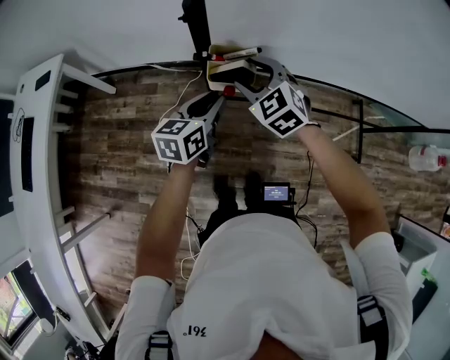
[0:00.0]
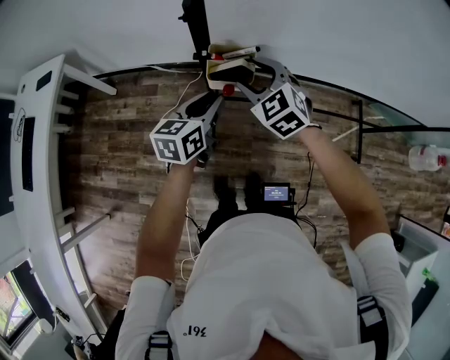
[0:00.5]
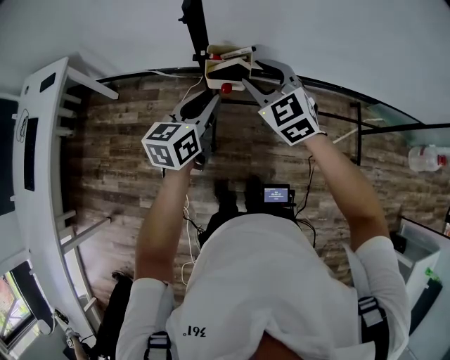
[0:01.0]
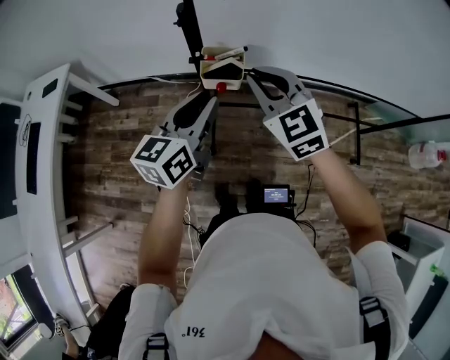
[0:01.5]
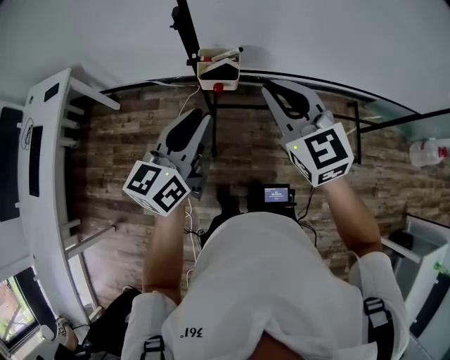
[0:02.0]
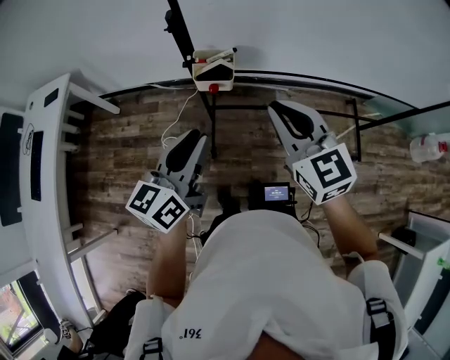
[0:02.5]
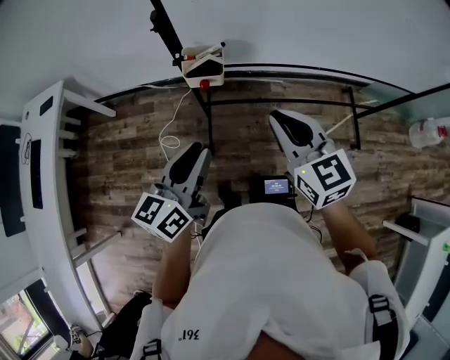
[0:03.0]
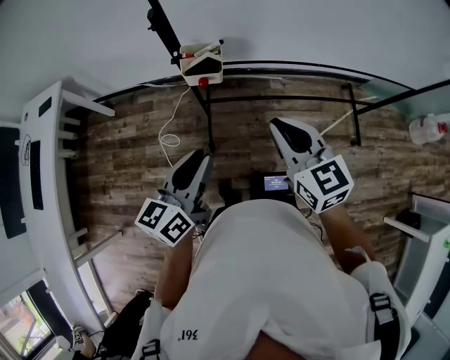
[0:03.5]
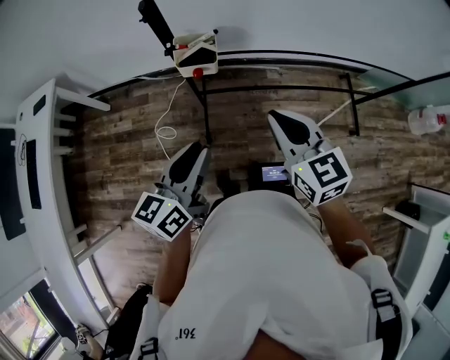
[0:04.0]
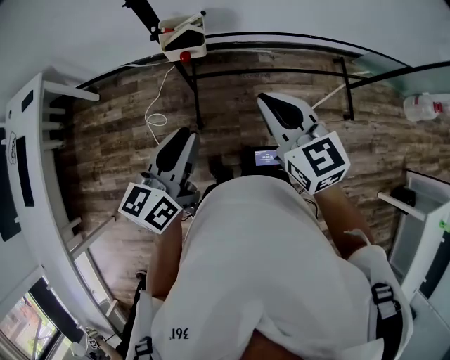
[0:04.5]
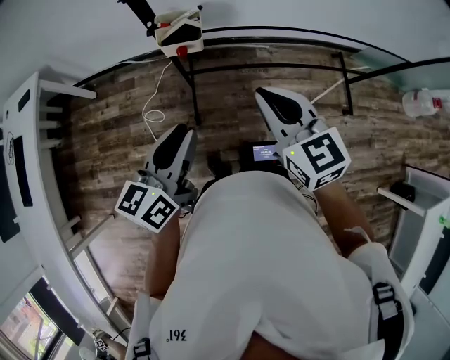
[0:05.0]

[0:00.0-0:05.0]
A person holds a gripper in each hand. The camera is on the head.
0:00.0 to 0:02.5: The right gripper moves backward, upward and to the right, approximately 25 cm, changes its angle by some 30 degrees, and closes its fingers, while the left gripper is displaced backward and upward by about 20 cm.
0:02.5 to 0:05.0: The left gripper moves backward, about 5 cm; the right gripper is displaced downward and backward by about 5 cm.

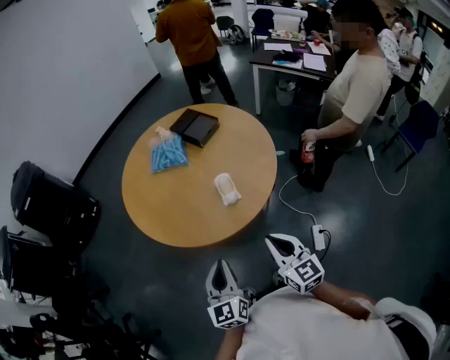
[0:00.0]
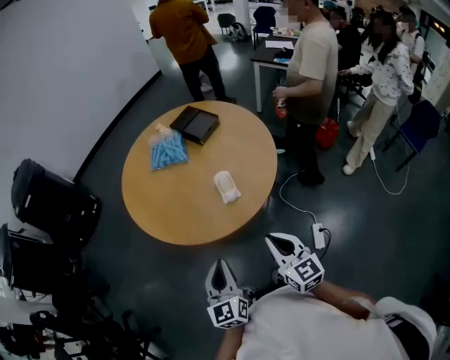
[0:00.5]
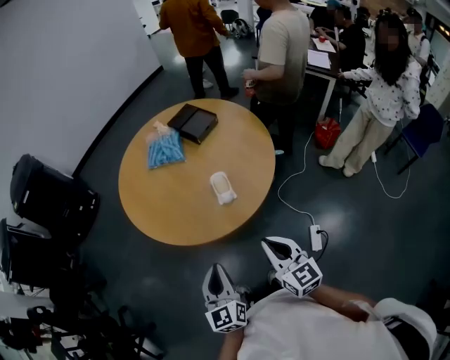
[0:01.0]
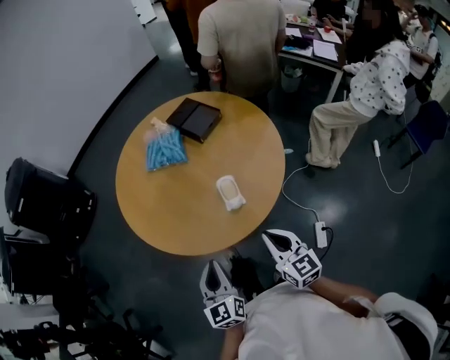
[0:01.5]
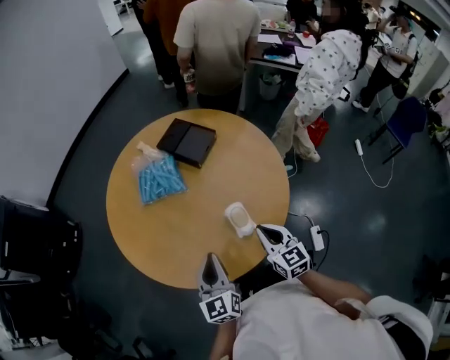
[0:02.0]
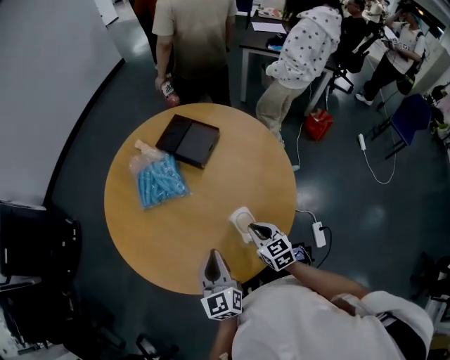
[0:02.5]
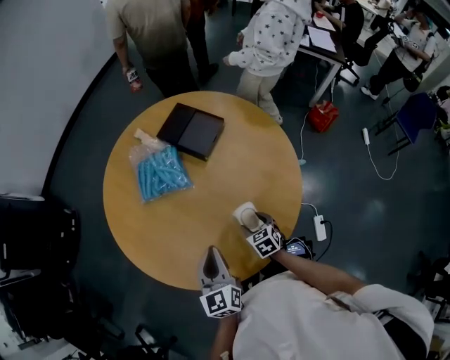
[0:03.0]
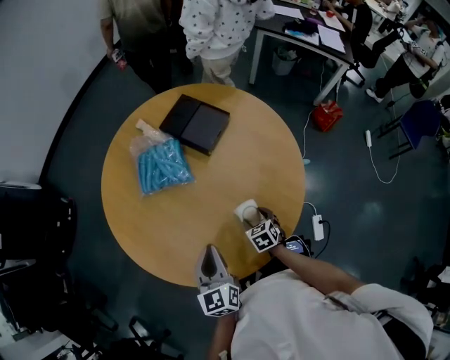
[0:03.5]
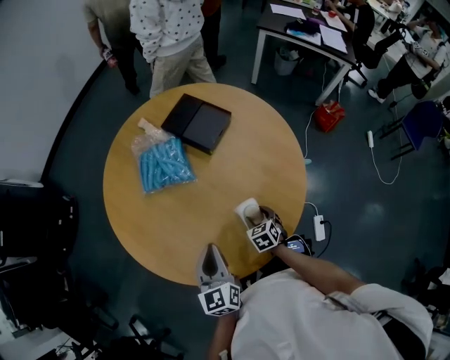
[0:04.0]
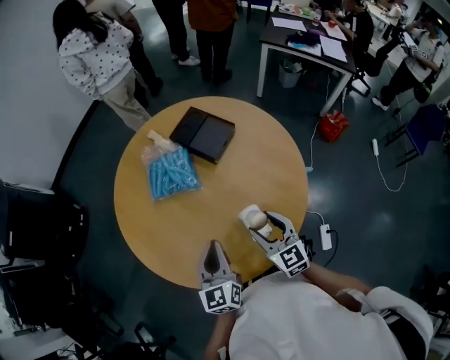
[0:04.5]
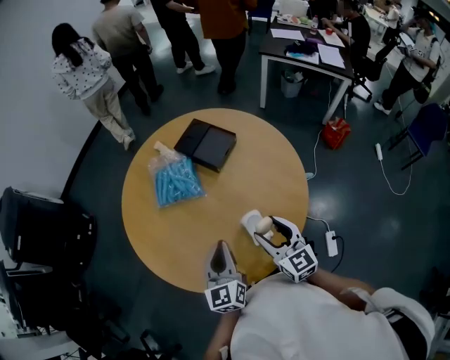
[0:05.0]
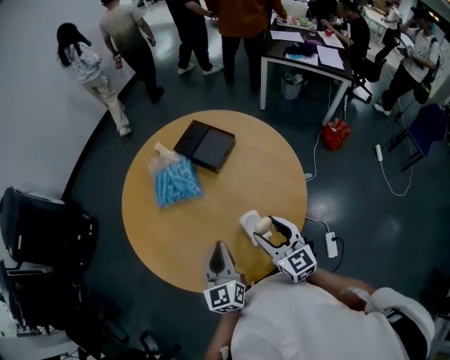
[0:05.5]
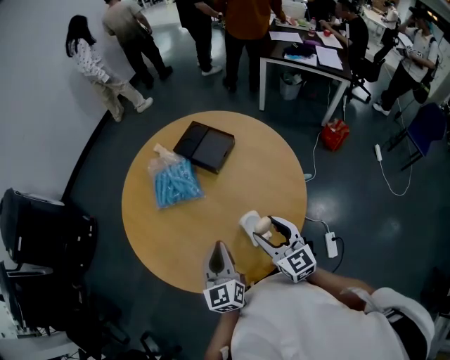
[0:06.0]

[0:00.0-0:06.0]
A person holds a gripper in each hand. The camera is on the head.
0:00.0 to 0:02.0: Both grippers move forward, some 25 cm.
0:02.0 to 0:04.0: The right gripper shifts some 25 cm downward and forward, angles its fingers downward, by roughly 40 degrees, and opens its fingers. The left gripper moves forward, roughly 10 cm.
0:04.0 to 0:06.0: The right gripper travels upward by approximately 25 cm, and points its fingers about 40 degrees further upward. Meanwhile the left gripper travels upward by about 5 cm.

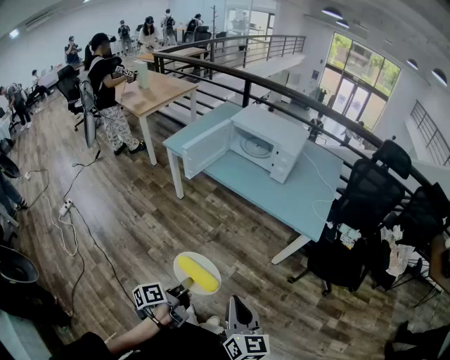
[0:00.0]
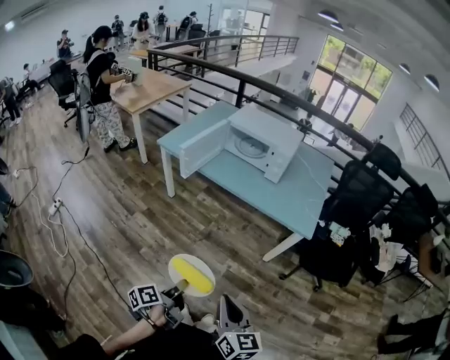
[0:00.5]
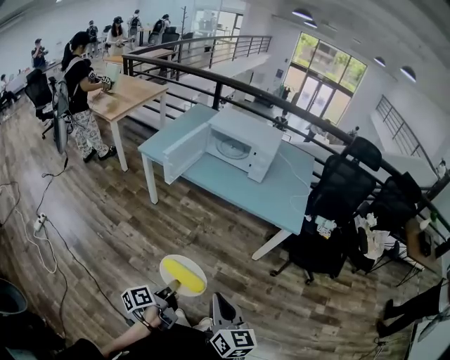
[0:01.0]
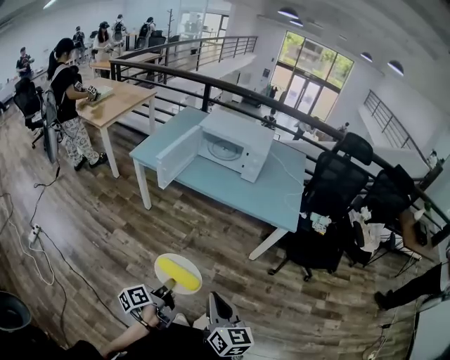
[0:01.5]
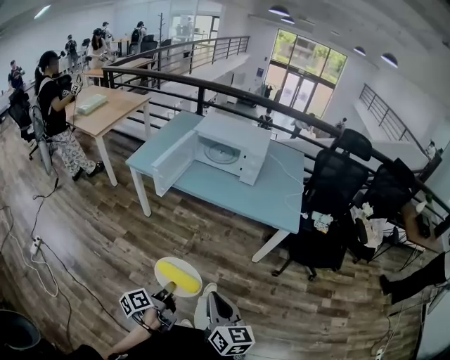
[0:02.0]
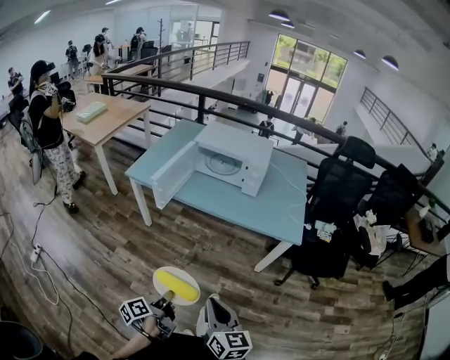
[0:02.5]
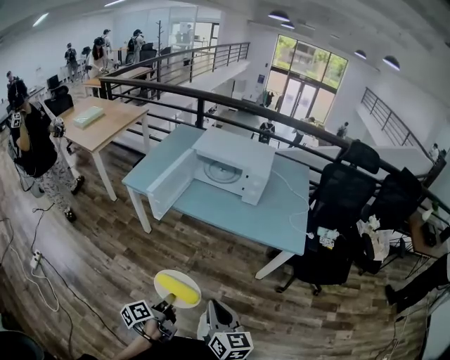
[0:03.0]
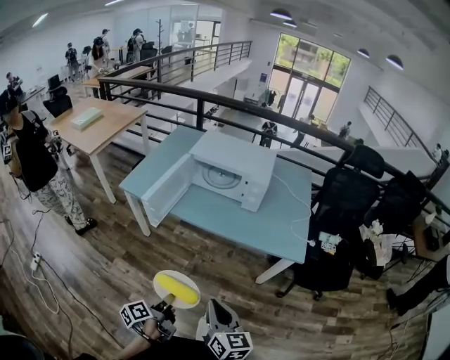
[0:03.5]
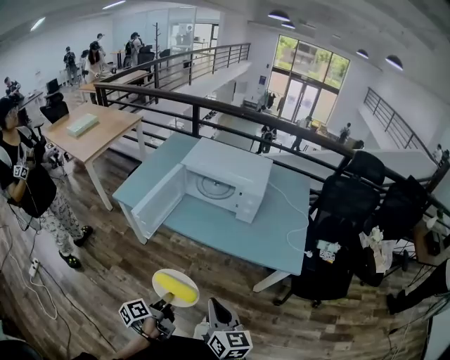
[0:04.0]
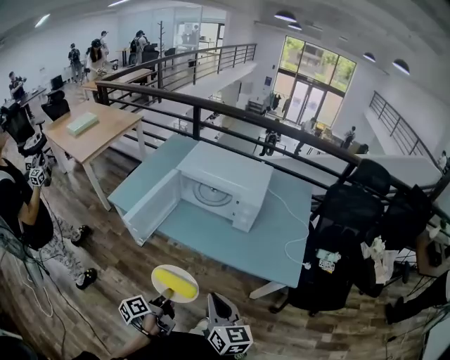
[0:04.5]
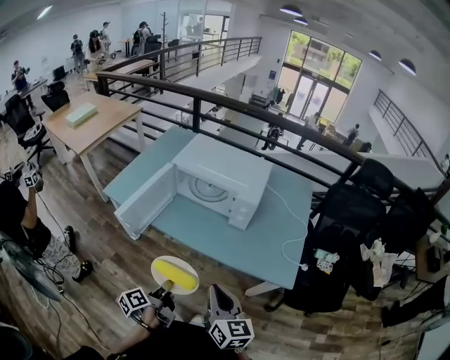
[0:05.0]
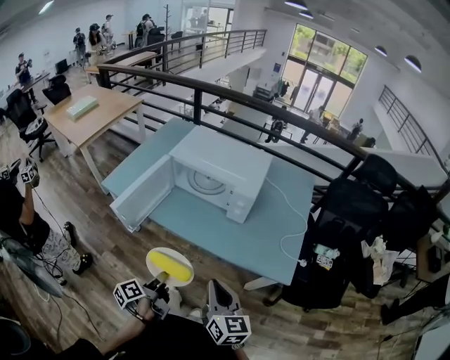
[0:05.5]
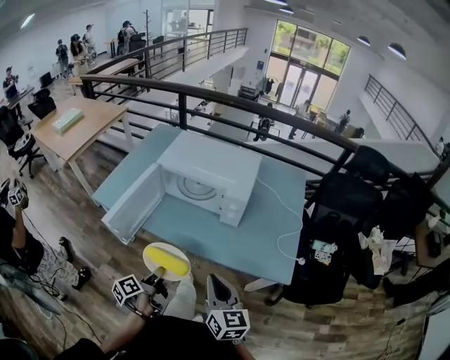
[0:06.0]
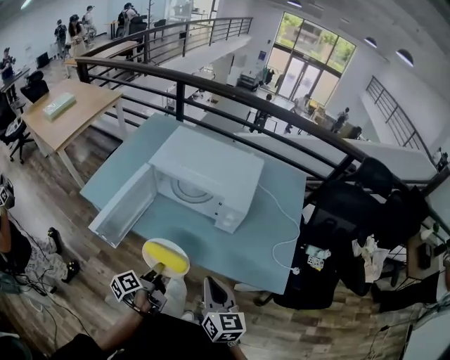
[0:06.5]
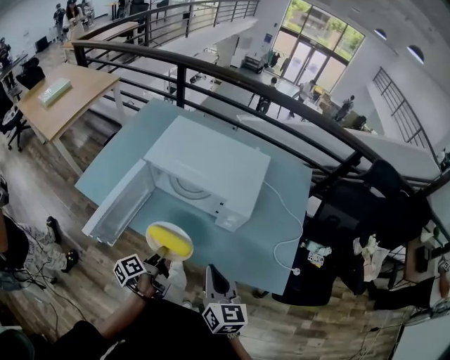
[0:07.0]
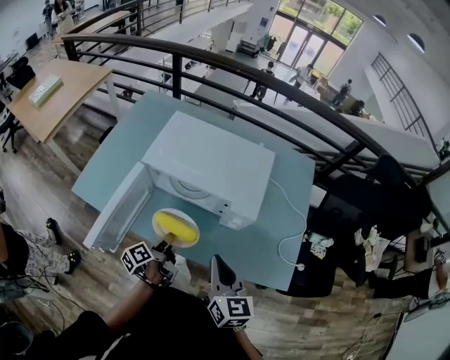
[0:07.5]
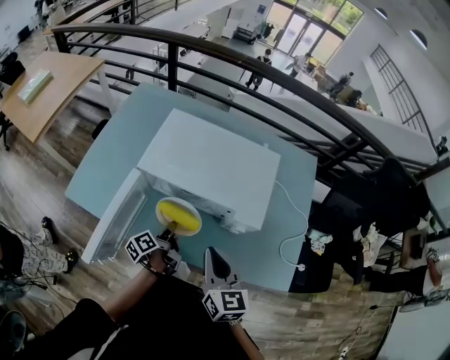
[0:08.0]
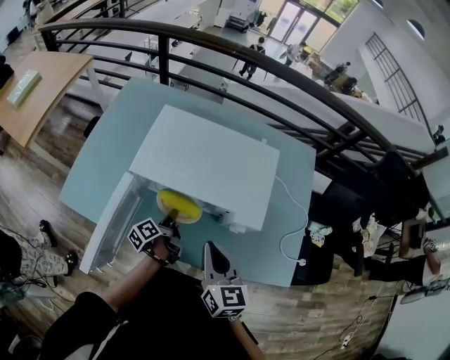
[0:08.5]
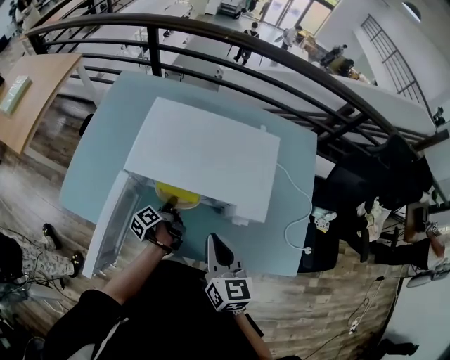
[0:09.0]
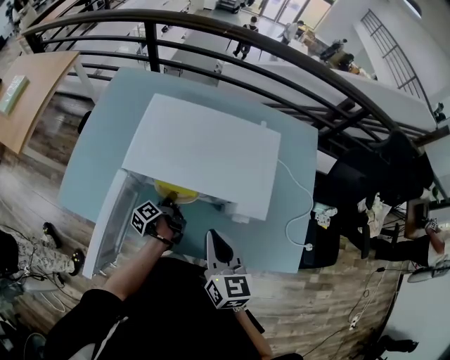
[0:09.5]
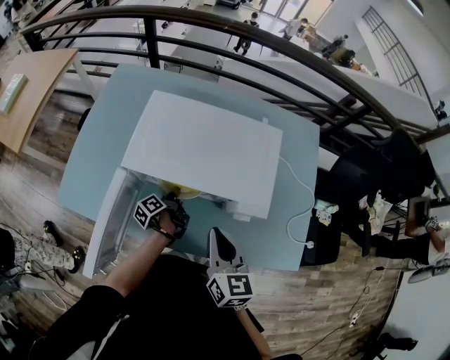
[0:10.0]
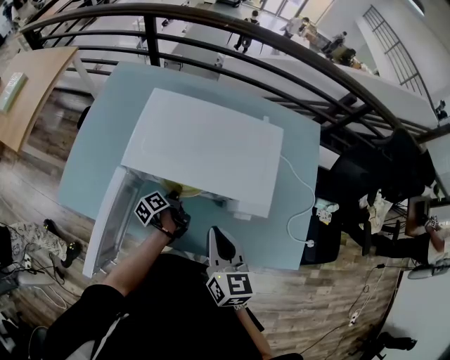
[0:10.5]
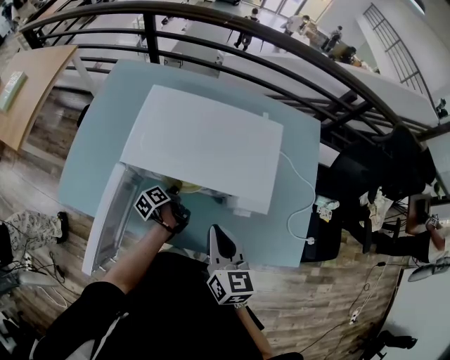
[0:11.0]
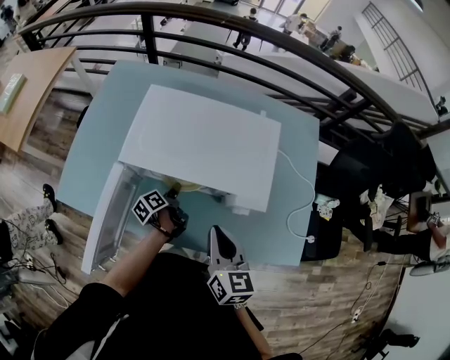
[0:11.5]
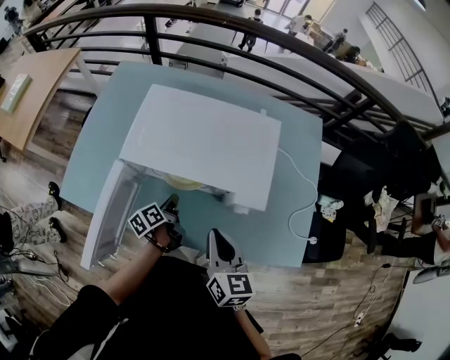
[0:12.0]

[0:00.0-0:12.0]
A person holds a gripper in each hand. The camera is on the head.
0:00.0 to 0:02.0: The right gripper ends up roughly 10 cm from where it was.
0:02.0 to 0:04.0: The right gripper ends up about 20 cm from where it was.
0:04.0 to 0:06.0: The right gripper ends up some 20 cm from where it was.
0:06.0 to 0:08.0: The right gripper ends up some 25 cm from where it was.
0:08.0 to 0:10.0: The right gripper moves roughly 5 cm.

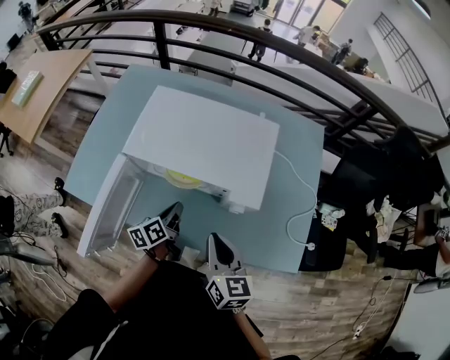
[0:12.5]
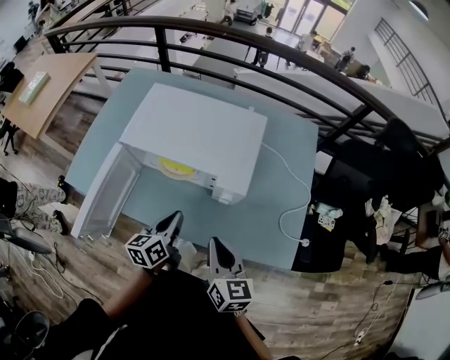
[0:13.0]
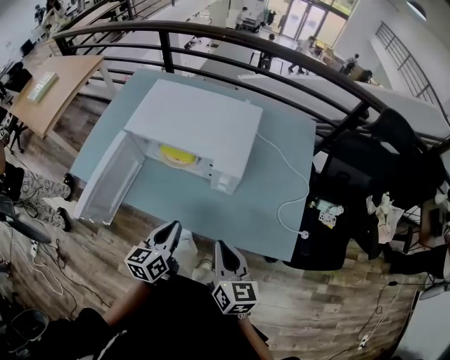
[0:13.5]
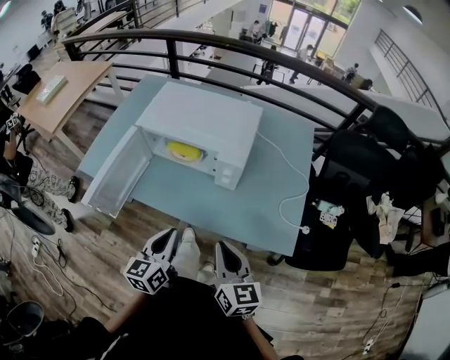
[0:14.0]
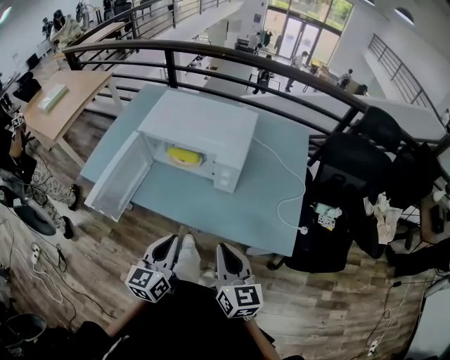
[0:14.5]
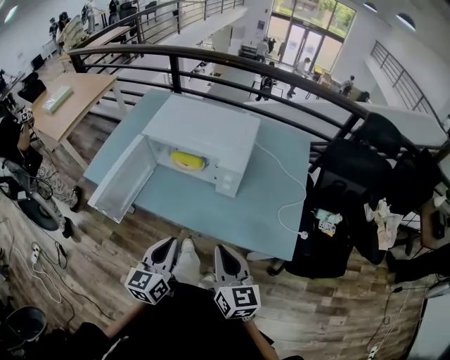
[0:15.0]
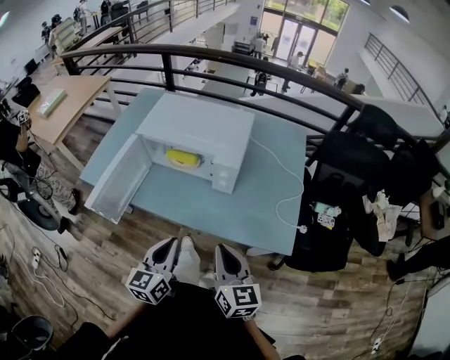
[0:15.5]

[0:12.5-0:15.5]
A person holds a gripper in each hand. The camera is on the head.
0:12.5 to 0:14.0: The right gripper changes place by approximately 20 cm.
